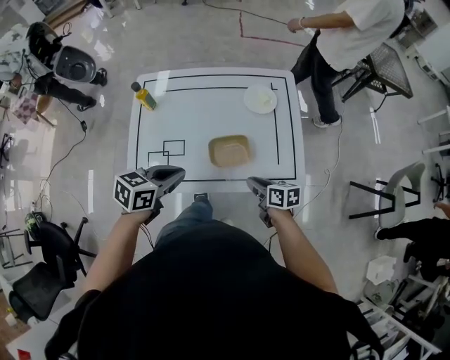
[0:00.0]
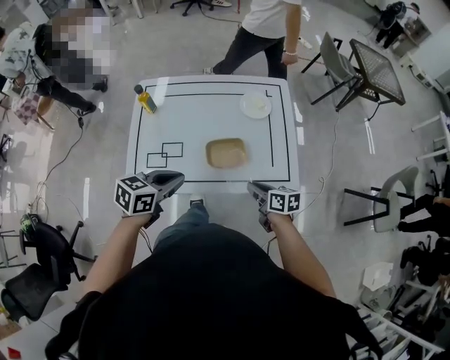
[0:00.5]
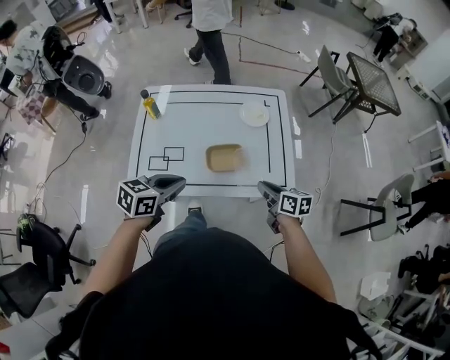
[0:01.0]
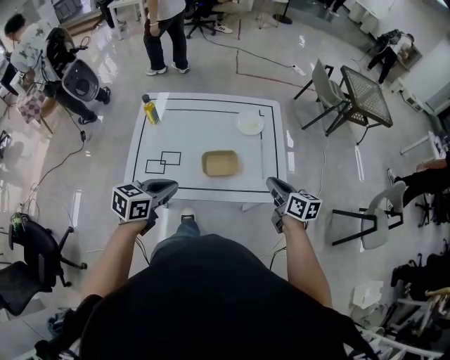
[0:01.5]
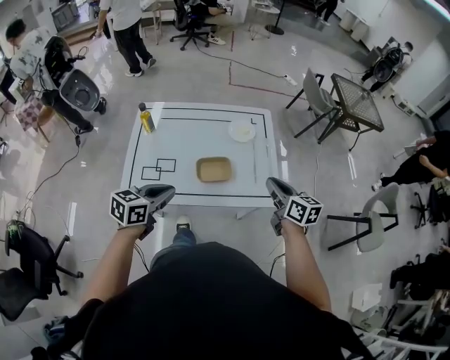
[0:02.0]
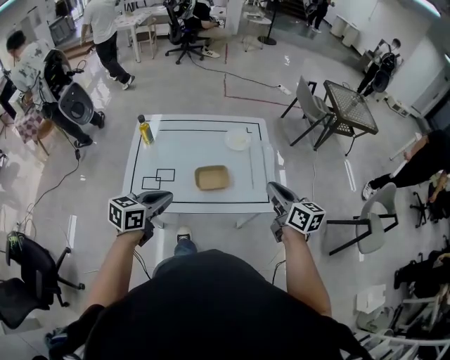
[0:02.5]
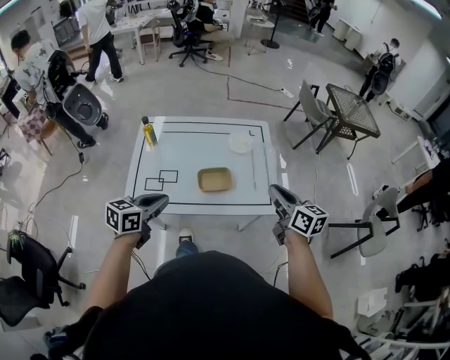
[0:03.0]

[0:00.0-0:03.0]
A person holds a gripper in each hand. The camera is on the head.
0:00.0 to 0:01.5: The left gripper travels backward and upward by approximately 10 cm; the right gripper is displaced upward and to the right by approximately 20 cm, and turns by about 20 degrees.
0:01.5 to 0:03.0: The right gripper travels upward and backward by roughly 15 cm. Meanwhile the left gripper shifts by roughly 5 cm.

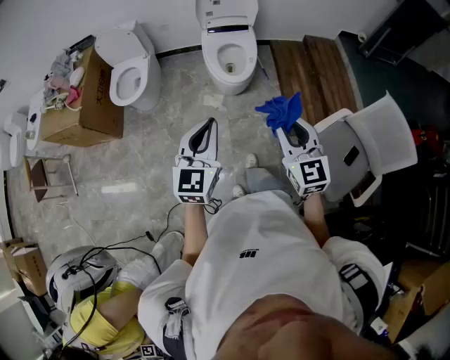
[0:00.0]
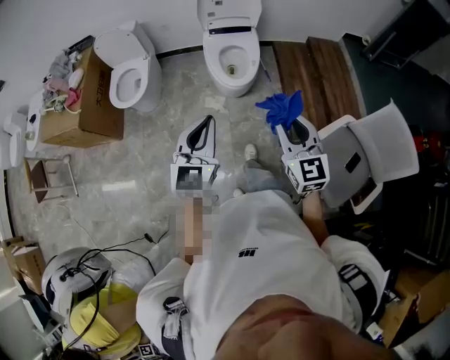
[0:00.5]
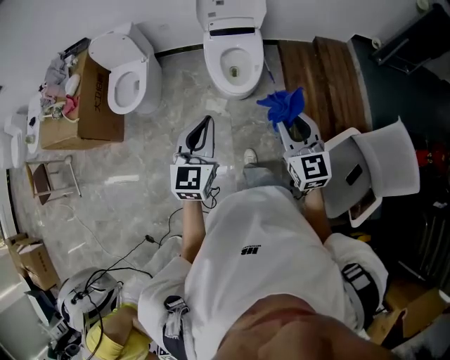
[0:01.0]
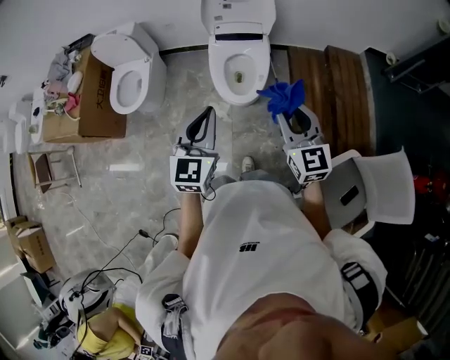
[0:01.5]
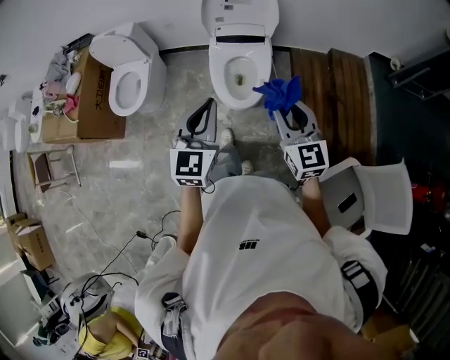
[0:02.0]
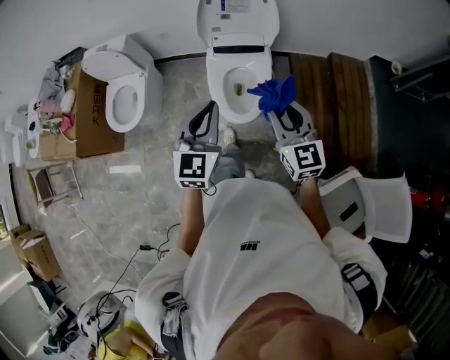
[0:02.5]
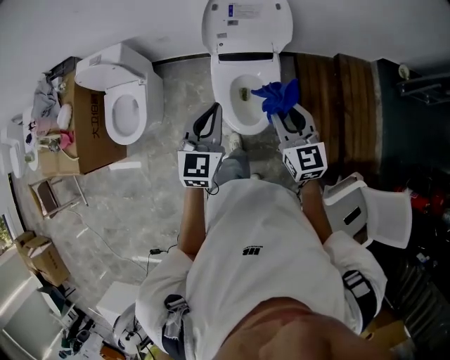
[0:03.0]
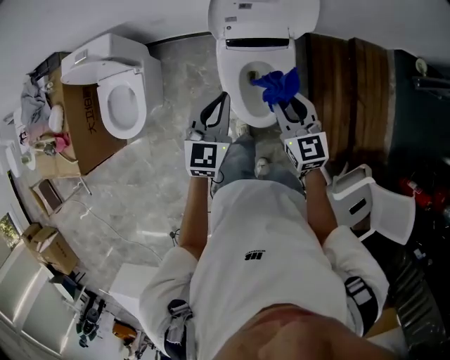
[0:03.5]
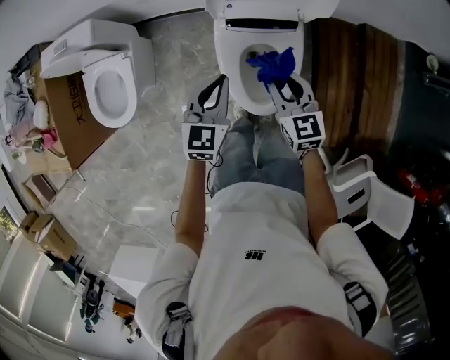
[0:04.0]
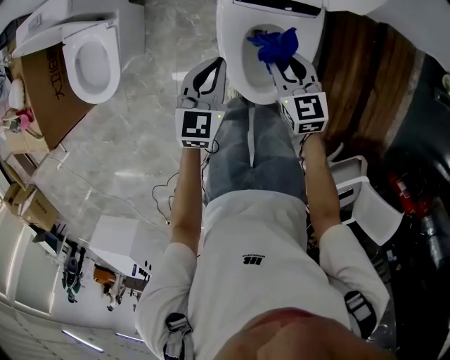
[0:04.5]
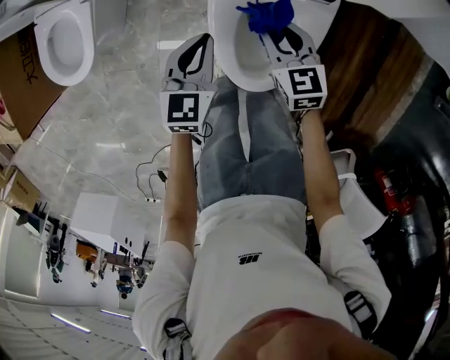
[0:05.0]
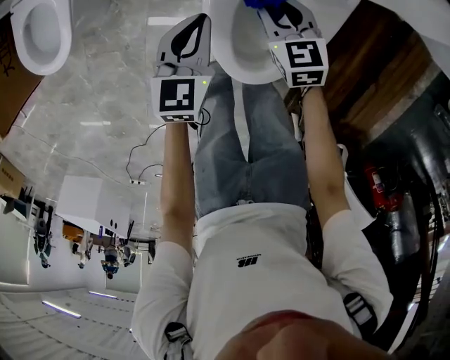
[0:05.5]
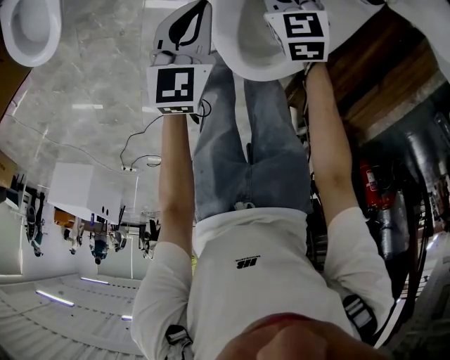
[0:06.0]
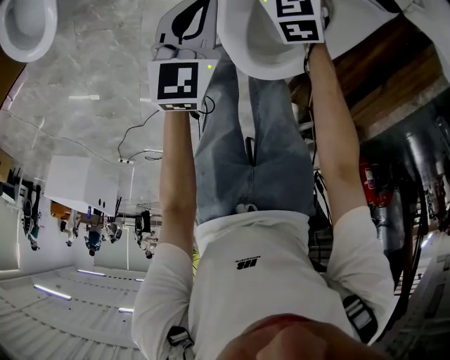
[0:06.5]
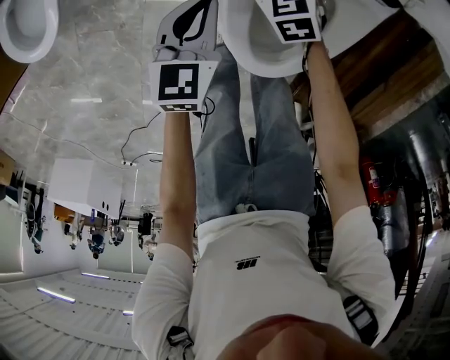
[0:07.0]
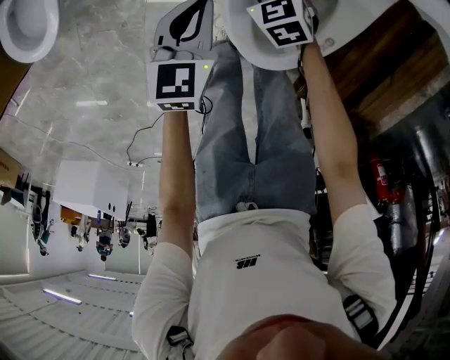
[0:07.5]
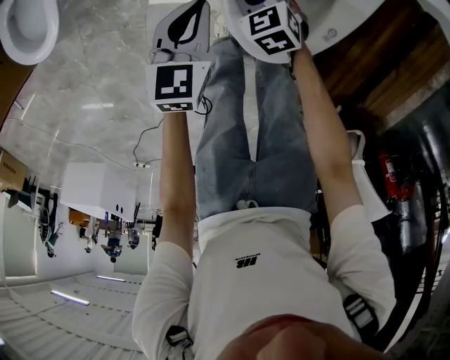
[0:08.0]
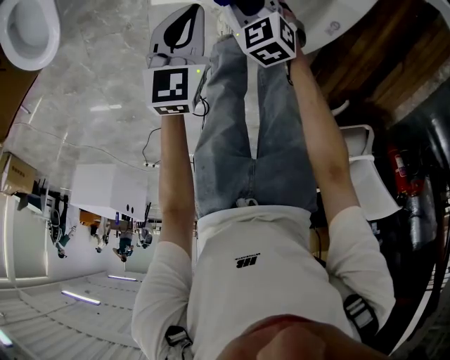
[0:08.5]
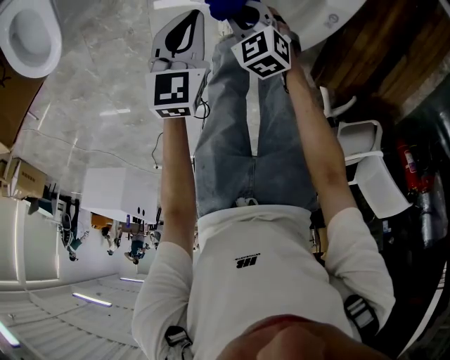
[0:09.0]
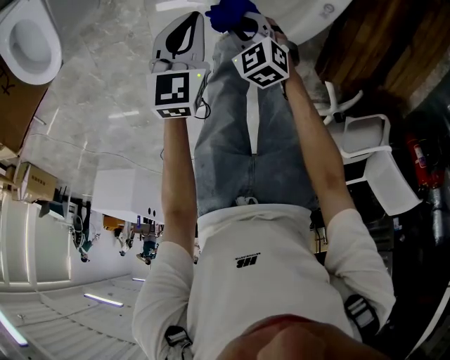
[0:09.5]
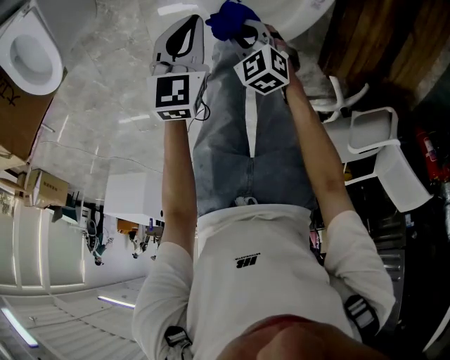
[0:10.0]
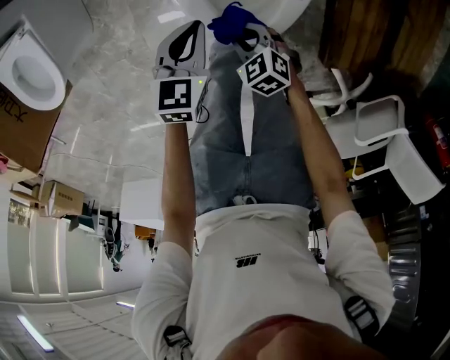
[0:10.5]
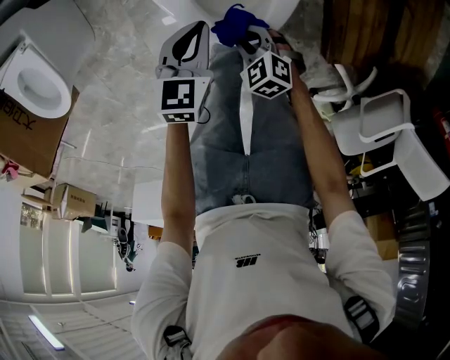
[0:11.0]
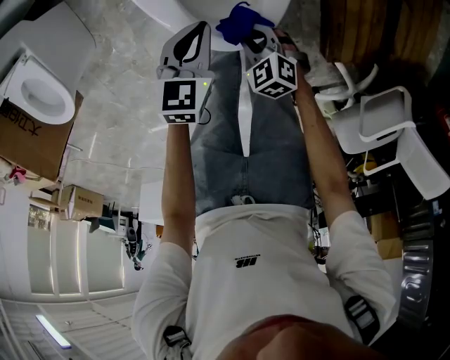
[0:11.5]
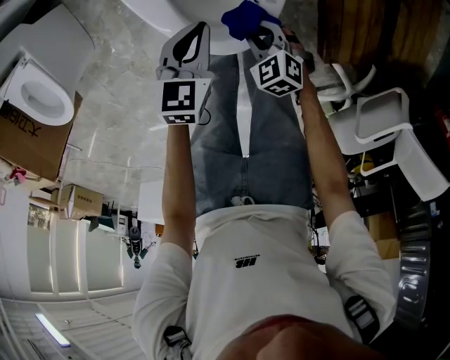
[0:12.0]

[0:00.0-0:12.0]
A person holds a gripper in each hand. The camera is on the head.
0:00.0 to 0:02.0: Both grippers move forward, roughly 35 cm.
0:02.0 to 0:04.0: The two grippers travel together, forward, some 40 cm. Both grippers move downward, about 25 cm. The left gripper swivels about 20 degrees, while the right gripper rotates approximately 20 degrees.
0:04.0 to 0:06.0: Both grippers travel together downward, roughly 35 cm. The right gripper rotates approximately 30 degrees. The left gripper swivels approximately 20 degrees.
0:06.0 to 0:08.0: The left gripper goes approximately 5 cm backward, while the right gripper goes some 15 cm backward, to the left and downward.
0:08.0 to 0:10.0: The left gripper is displaced backward by approximately 5 cm, while the right gripper moves backward, about 15 cm.
0:10.0 to 0:12.0: The two grippers go approximately 15 cm to the right.

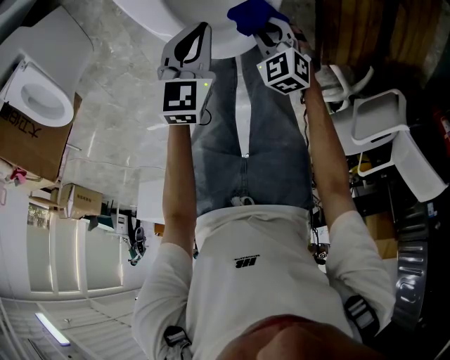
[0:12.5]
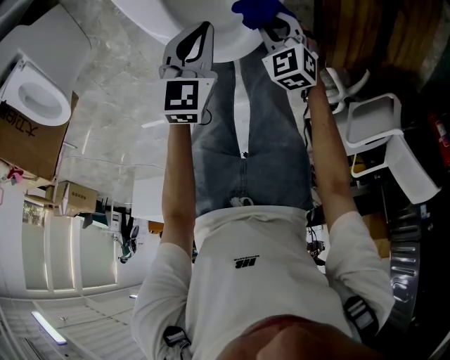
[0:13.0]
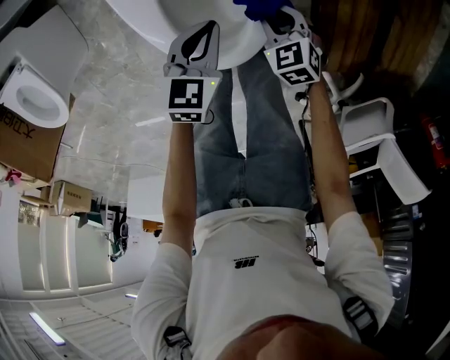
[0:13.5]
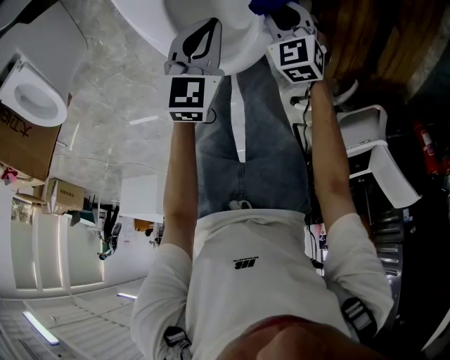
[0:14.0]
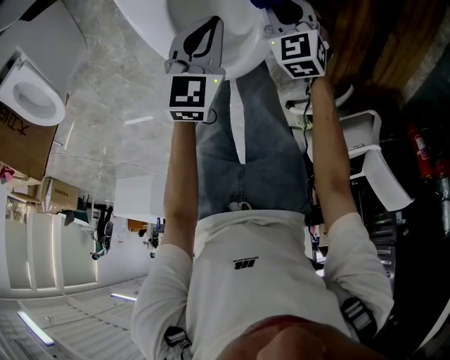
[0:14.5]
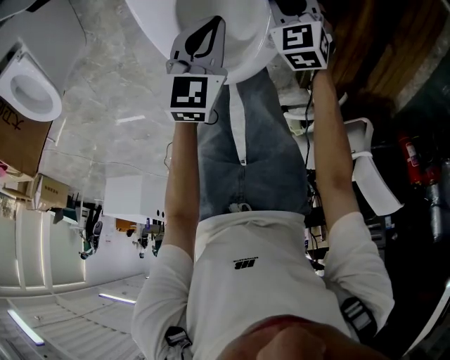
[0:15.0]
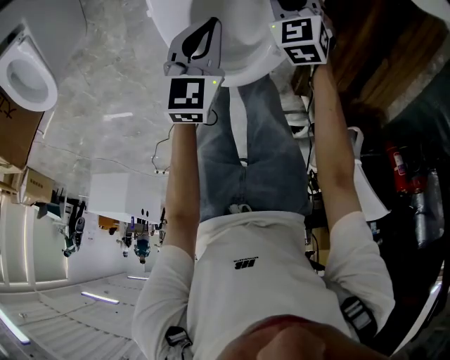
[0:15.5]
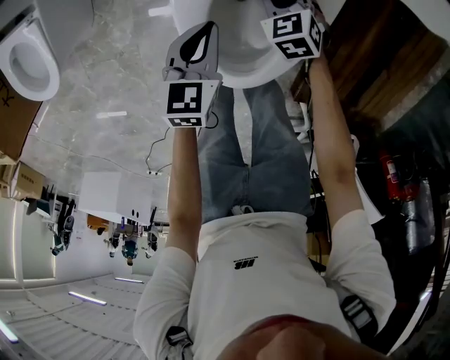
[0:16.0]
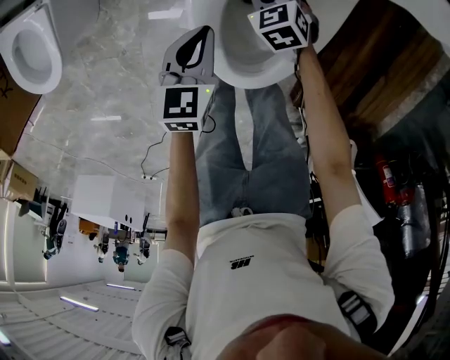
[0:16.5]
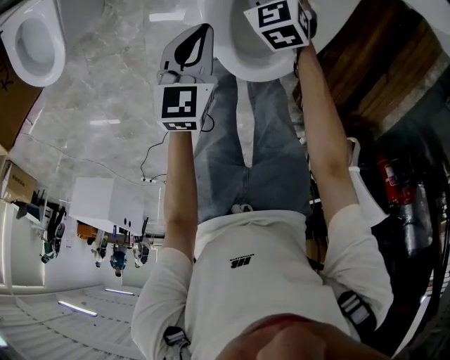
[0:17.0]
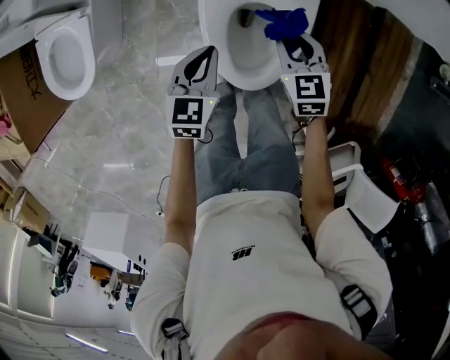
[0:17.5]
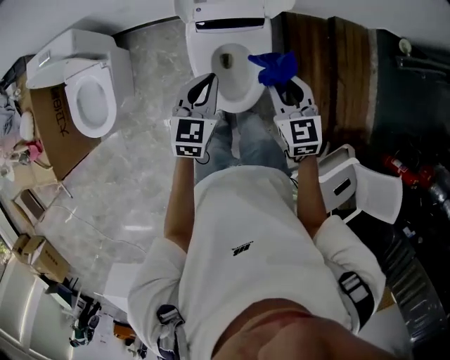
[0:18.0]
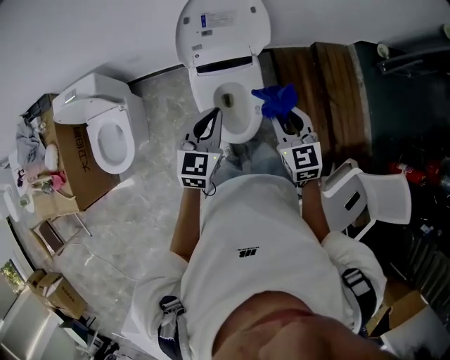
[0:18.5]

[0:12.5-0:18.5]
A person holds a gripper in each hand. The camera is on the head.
0:12.5 to 0:14.5: The right gripper is displaced forward by roughly 20 cm. The left gripper goes approximately 10 cm forward.
0:14.5 to 0:16.5: The left gripper travels to the left by roughly 15 cm, while the right gripper shifts approximately 20 cm to the left and forward.
0:16.5 to 0:18.5: Both grippers move upward, roughly 50 cm. The left gripper changes its angle by some 40 degrees. The right gripper tilts its fingers roughly 30 degrees upward.

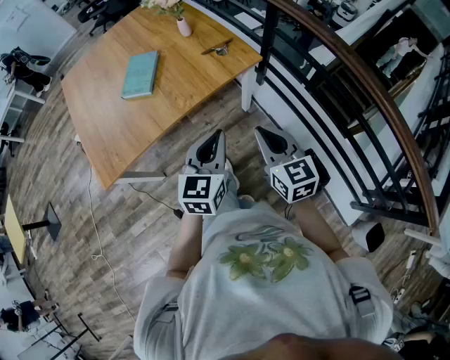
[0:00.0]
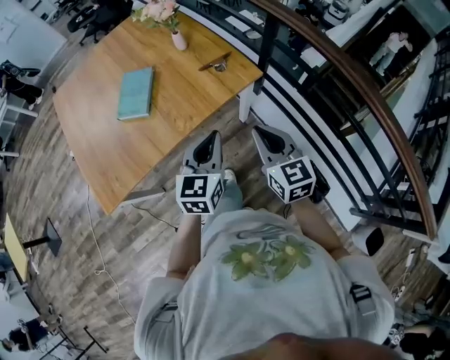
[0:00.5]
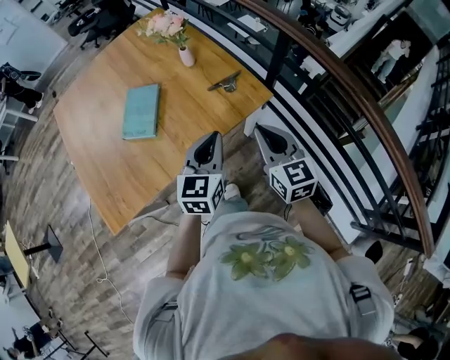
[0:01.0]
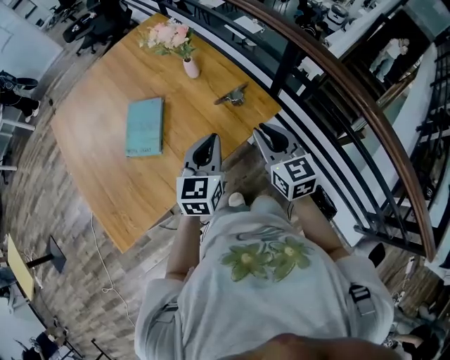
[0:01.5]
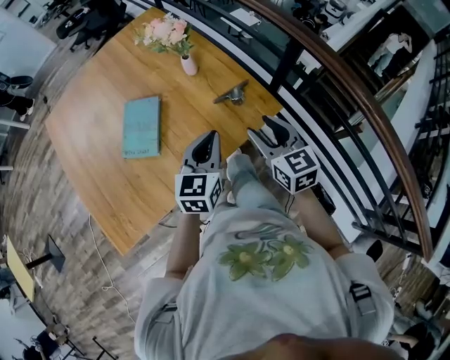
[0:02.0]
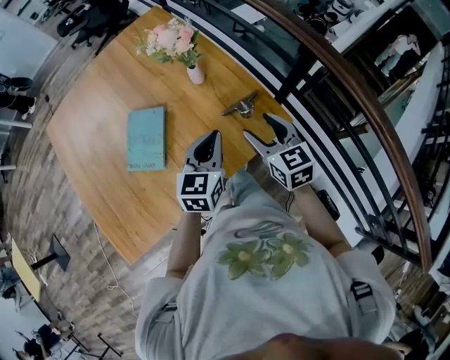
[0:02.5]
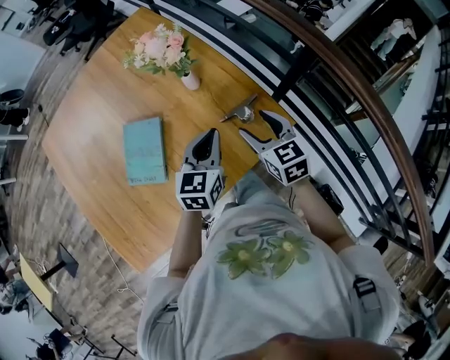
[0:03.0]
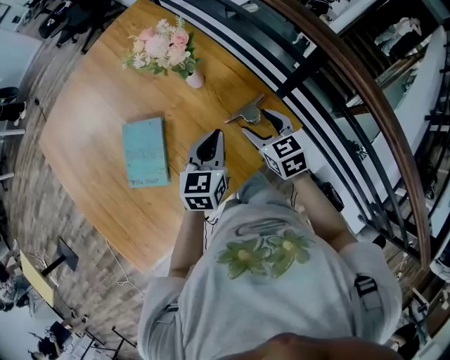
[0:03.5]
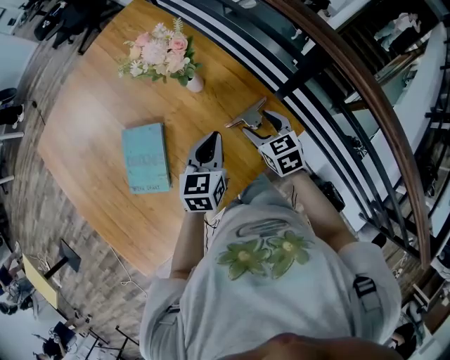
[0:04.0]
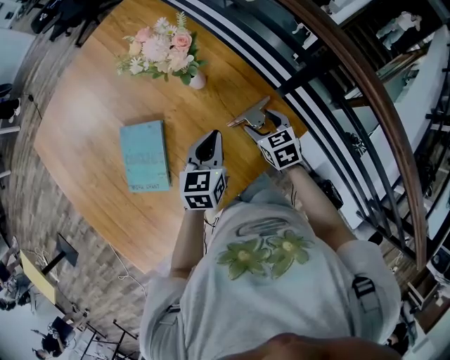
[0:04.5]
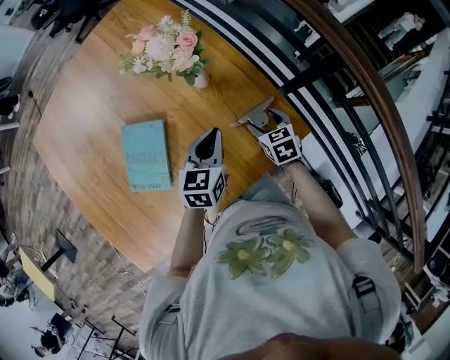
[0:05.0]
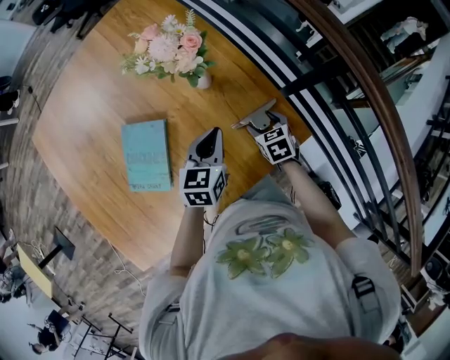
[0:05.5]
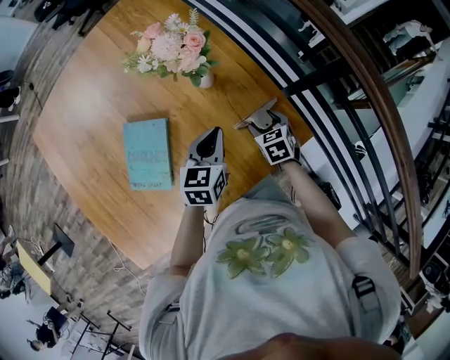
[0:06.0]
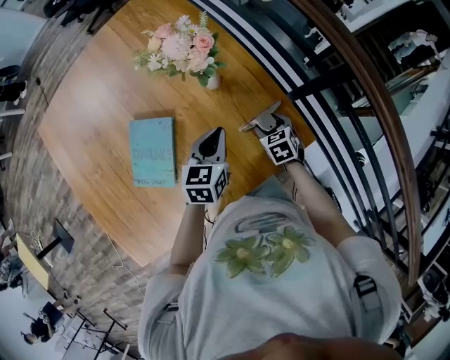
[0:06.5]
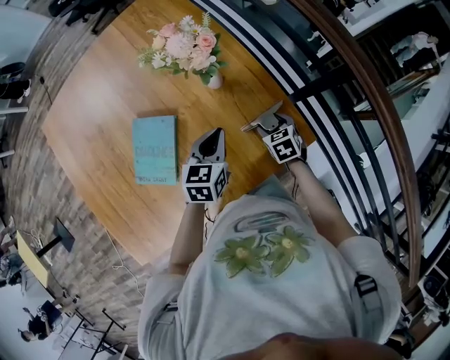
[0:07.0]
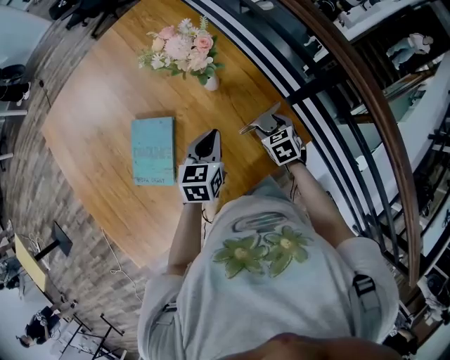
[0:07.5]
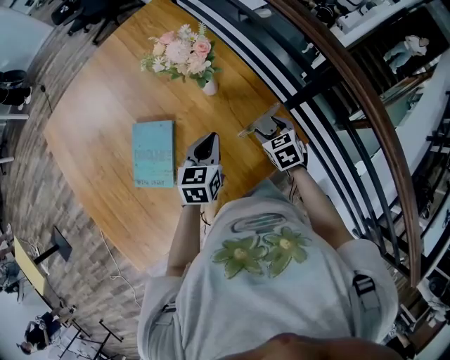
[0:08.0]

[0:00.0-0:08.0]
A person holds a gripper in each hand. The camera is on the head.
0:00.0 to 0:02.0: The grippers both shift forward by about 30 cm. The right gripper opens.
0:02.0 to 0:04.0: Both grippers move forward and downward, some 20 cm. The right gripper turns by some 20 degrees.
0:04.0 to 0:06.0: The right gripper shifts roughly 10 cm downward.
0:06.0 to 0:08.0: The right gripper moves upward, some 5 cm.
